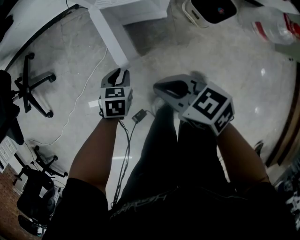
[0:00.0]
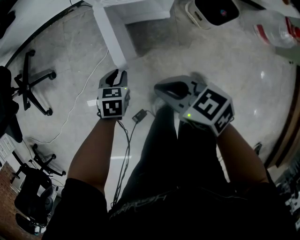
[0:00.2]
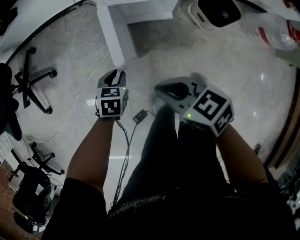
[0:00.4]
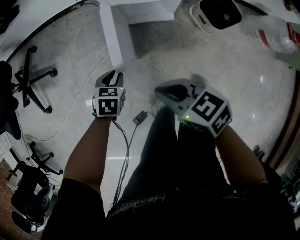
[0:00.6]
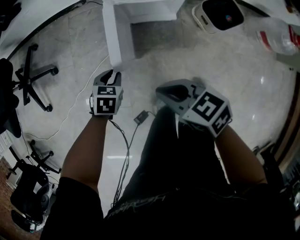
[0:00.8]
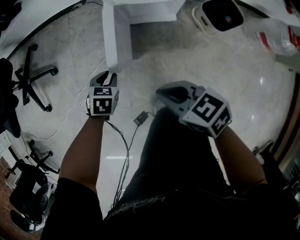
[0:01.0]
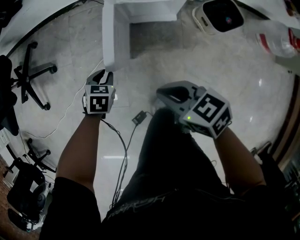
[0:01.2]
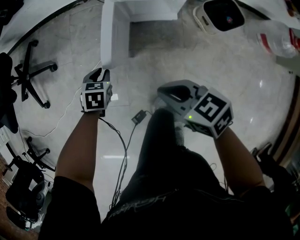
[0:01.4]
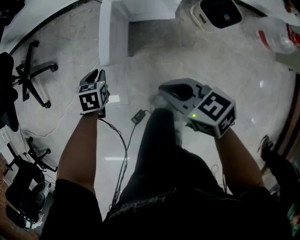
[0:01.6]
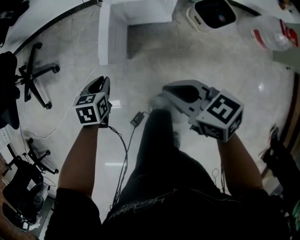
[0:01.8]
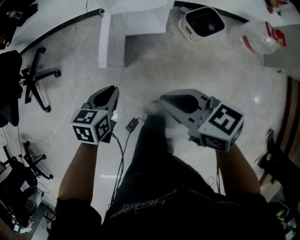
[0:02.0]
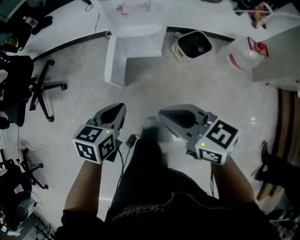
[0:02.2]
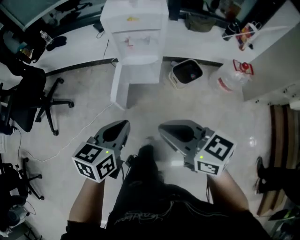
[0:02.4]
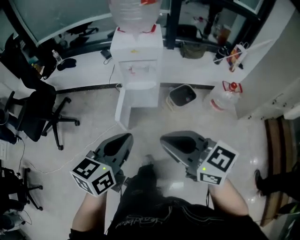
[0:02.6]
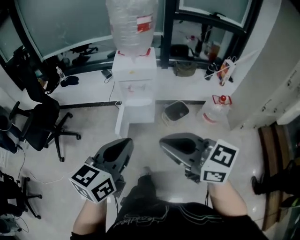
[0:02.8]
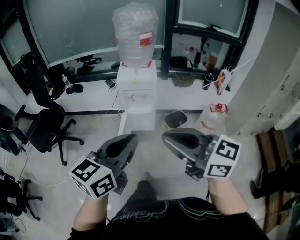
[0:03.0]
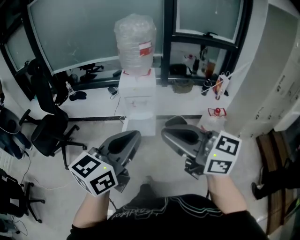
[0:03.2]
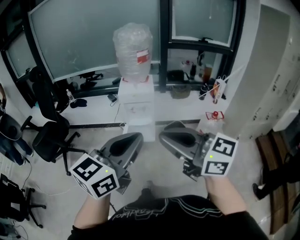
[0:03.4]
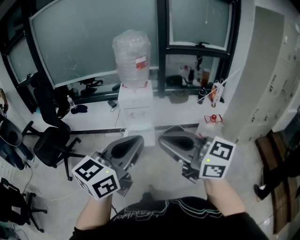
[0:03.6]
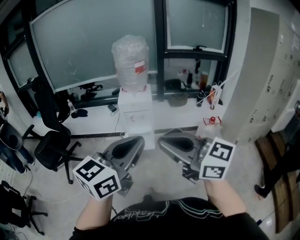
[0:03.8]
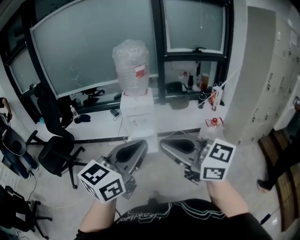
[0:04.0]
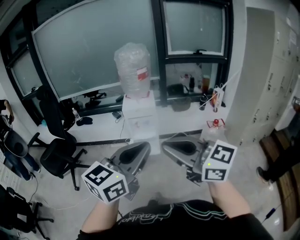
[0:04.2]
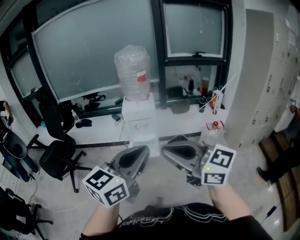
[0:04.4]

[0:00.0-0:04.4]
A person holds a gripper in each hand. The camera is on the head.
0.0 to 1.4 s: The left gripper moves to the left and forward, approximately 10 cm.
1.4 to 3.0 s: Both grippers travel together upward and backward, about 80 cm. The left gripper points its fingers roughly 60 degrees further upward, while the right gripper points its fingers some 40 degrees further upward.
3.0 to 4.4 s: Both grippers move backward and upward, about 15 cm.

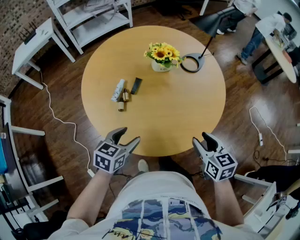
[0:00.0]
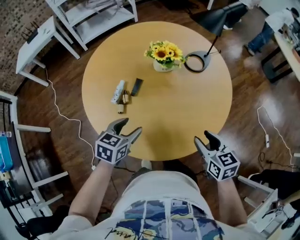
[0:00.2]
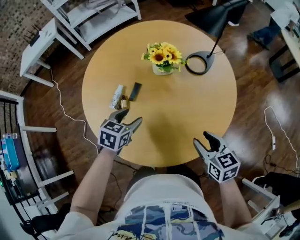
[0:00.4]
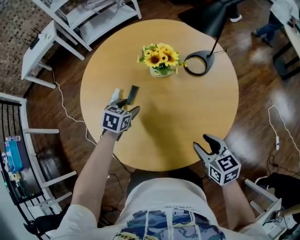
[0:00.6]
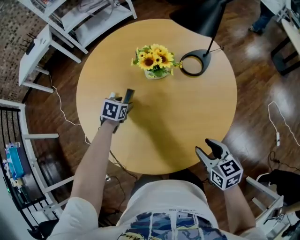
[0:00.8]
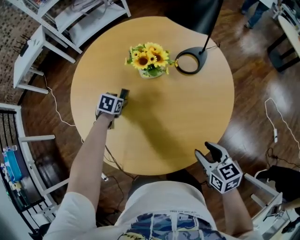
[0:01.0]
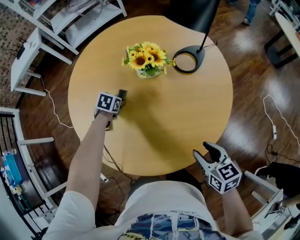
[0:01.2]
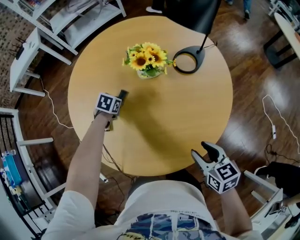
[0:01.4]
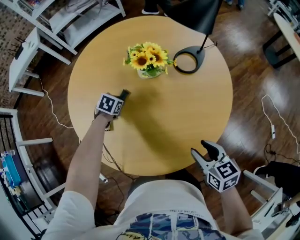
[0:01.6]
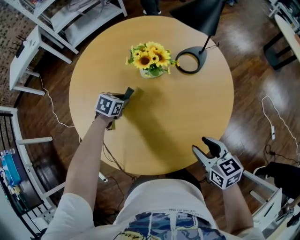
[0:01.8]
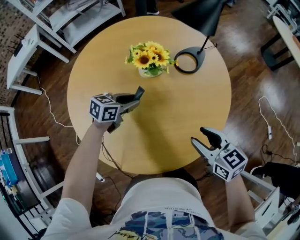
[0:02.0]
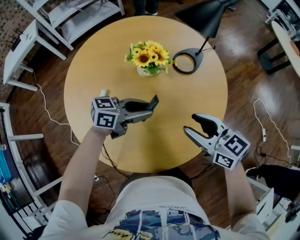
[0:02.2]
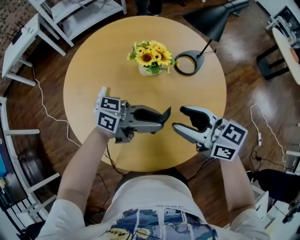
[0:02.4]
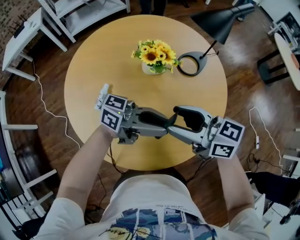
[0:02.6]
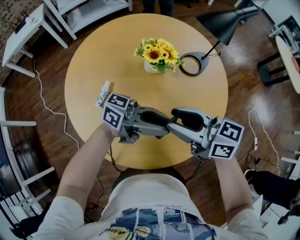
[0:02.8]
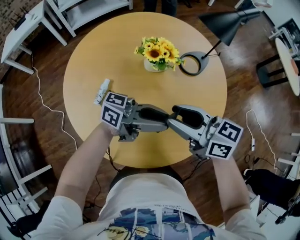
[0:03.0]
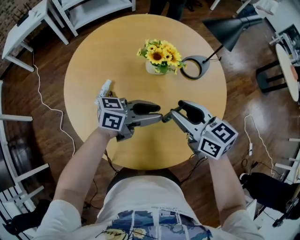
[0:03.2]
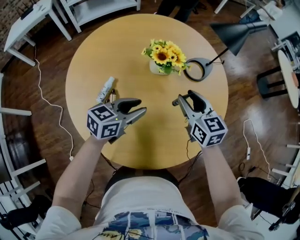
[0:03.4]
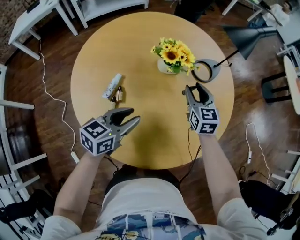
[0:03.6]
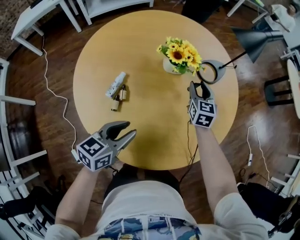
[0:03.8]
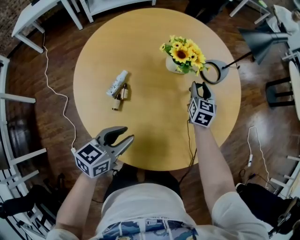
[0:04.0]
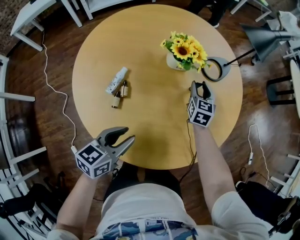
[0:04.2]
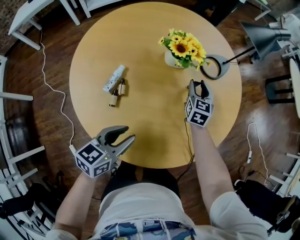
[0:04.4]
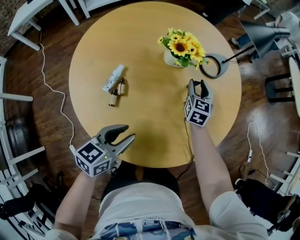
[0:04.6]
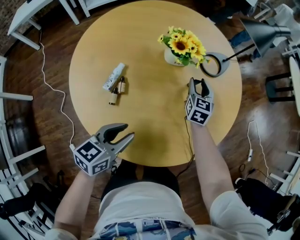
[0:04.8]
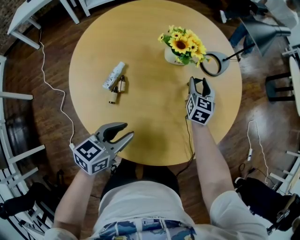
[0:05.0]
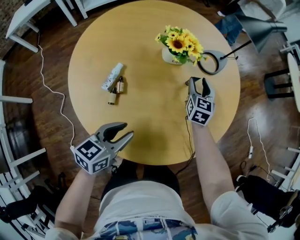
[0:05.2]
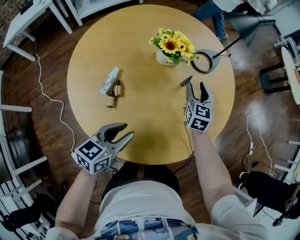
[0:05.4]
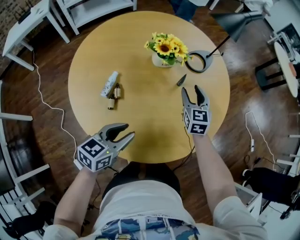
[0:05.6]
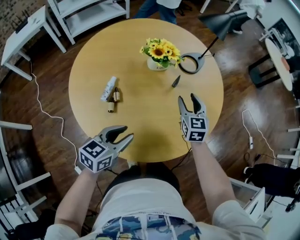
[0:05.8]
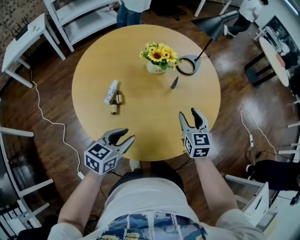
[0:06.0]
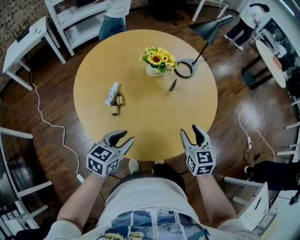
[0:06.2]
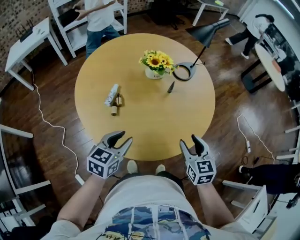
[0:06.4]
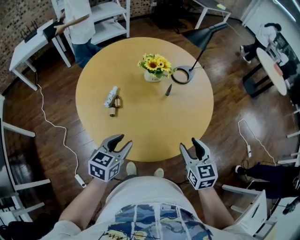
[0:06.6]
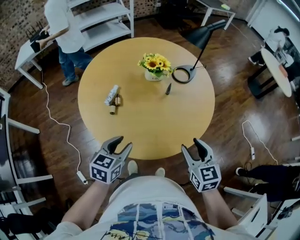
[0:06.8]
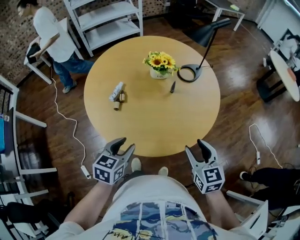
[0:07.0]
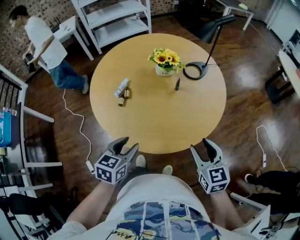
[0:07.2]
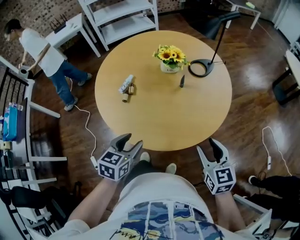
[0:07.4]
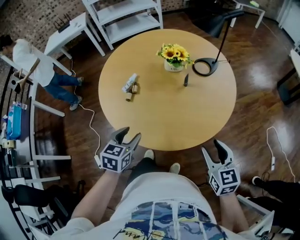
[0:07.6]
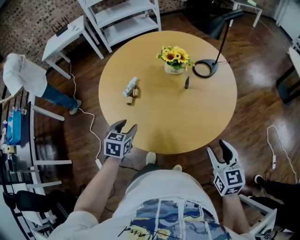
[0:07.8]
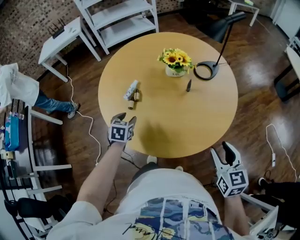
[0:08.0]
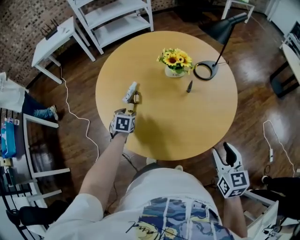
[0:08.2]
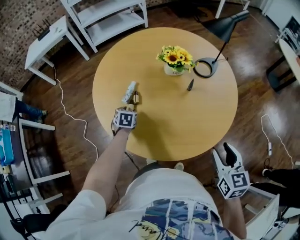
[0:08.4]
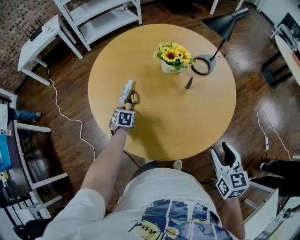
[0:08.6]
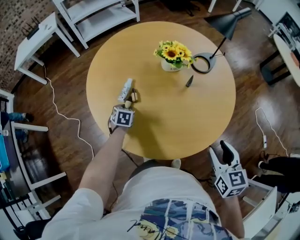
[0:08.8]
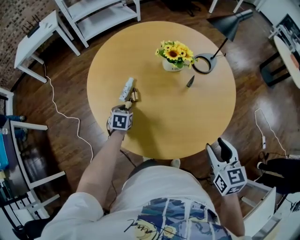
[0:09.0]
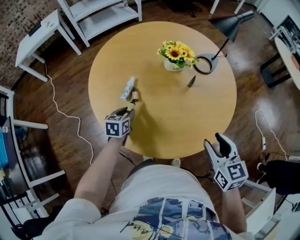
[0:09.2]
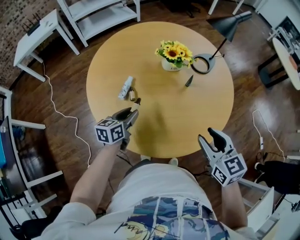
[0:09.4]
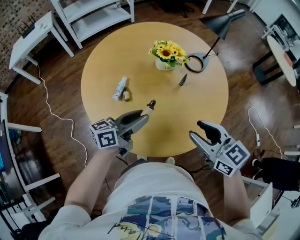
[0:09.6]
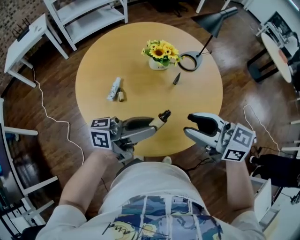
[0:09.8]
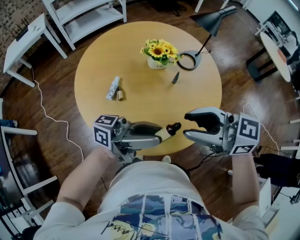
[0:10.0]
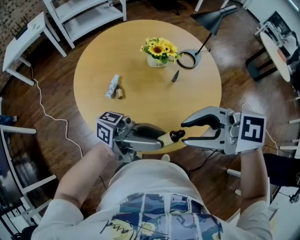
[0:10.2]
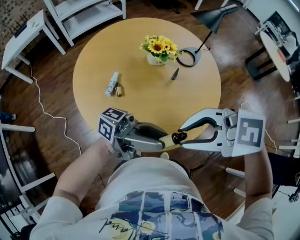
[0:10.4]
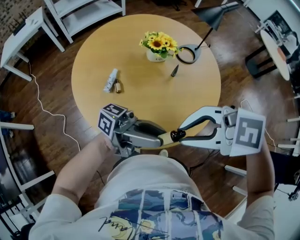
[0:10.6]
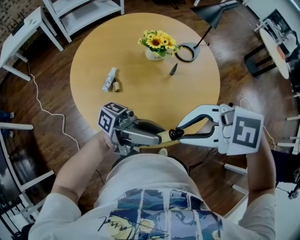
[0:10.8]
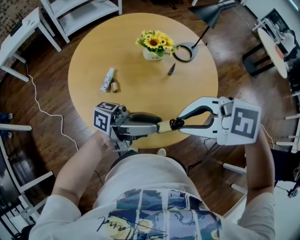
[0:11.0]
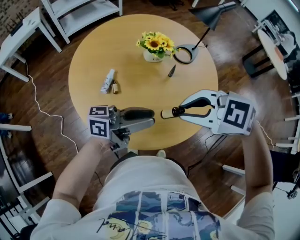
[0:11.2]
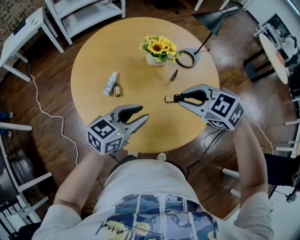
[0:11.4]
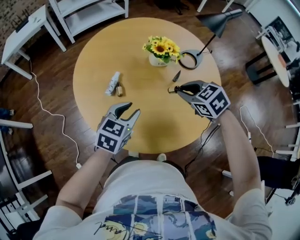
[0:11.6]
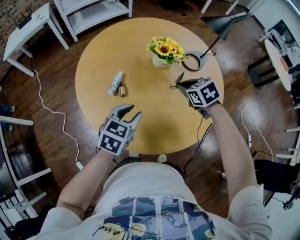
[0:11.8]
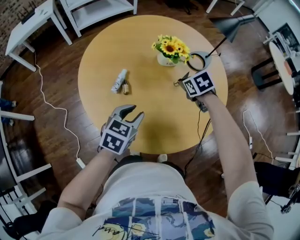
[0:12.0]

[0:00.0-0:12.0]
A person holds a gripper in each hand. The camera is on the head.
0.0 to 1.6 s: The right gripper moves forward, to the right and downward, some 15 cm. Meanwhile the left gripper goes about 35 cm forward and downward, turns by roughly 30 degrees, and closes up.
1.6 to 3.0 s: The left gripper goes some 30 cm upward, and angles its fingers upward, by some 90 degrees, while the right gripper ends up about 25 cm from where it was, and rotates some 40 degrees.
3.0 to 4.4 s: The left gripper shifts by approximately 20 cm, and tips its fingers downward by some 40 degrees. Meanwhile the right gripper heads downward, covering some 20 cm, and turns by approximately 60 degrees.
4.4 to 6.0 s: The left gripper heads backward, covering some 5 cm; the right gripper is displaced backward and upward by about 25 cm.
6.0 to 7.6 s: The left gripper ends up about 10 cm from where it was, and rotates approximately 30 degrees; the right gripper moves about 25 cm.
7.6 to 9.0 s: The right gripper moves to the left and forward, approximately 15 cm, while the left gripper moves forward, downward and to the left, roughly 35 cm.
9.0 to 10.4 s: The left gripper heads upward, covering roughly 35 cm, and tips its fingers upward by about 90 degrees; the right gripper moves about 20 cm, changes its angle by about 70 degrees, and closes its fingers.
10.4 to 12.0 s: The right gripper shifts by about 35 cm, and tilts its fingers approximately 30 degrees downward. Meanwhile the left gripper goes approximately 15 cm downward, and angles its fingers downward, by about 70 degrees.

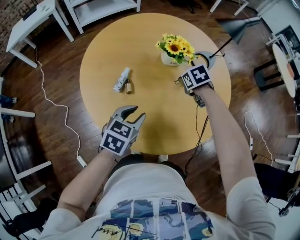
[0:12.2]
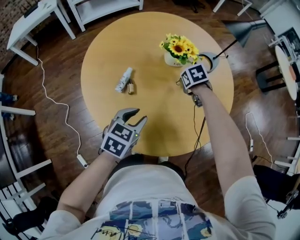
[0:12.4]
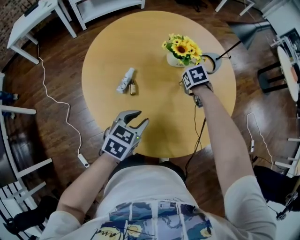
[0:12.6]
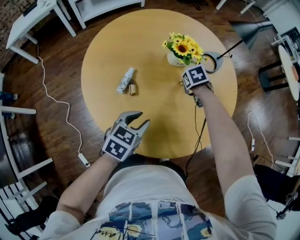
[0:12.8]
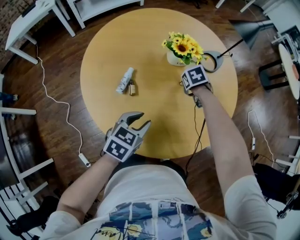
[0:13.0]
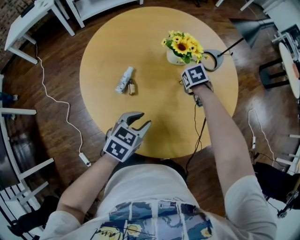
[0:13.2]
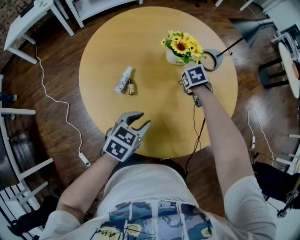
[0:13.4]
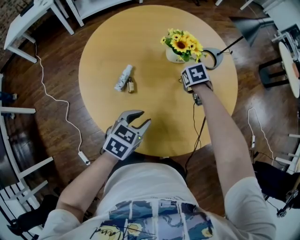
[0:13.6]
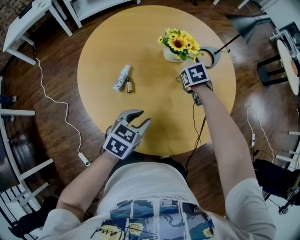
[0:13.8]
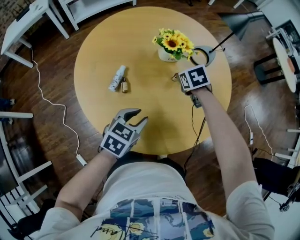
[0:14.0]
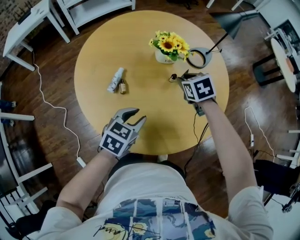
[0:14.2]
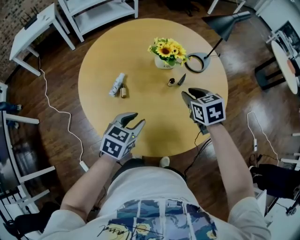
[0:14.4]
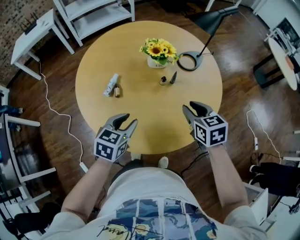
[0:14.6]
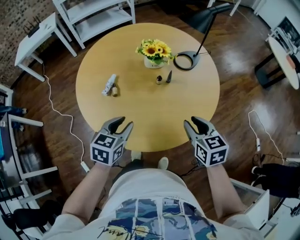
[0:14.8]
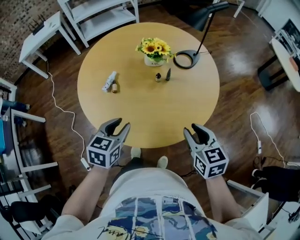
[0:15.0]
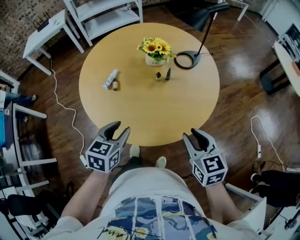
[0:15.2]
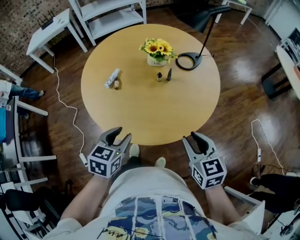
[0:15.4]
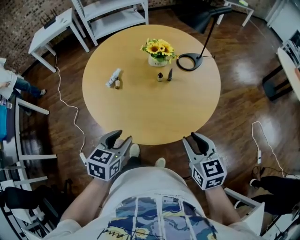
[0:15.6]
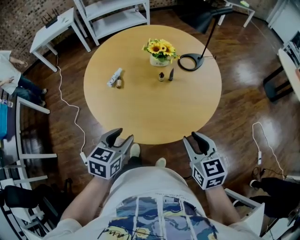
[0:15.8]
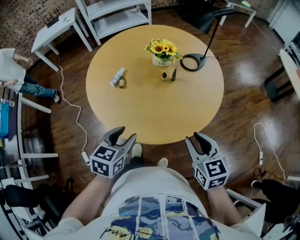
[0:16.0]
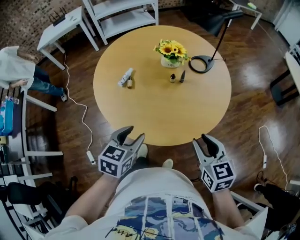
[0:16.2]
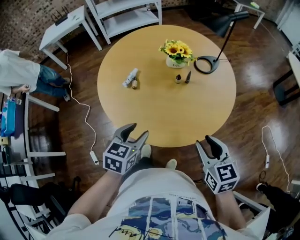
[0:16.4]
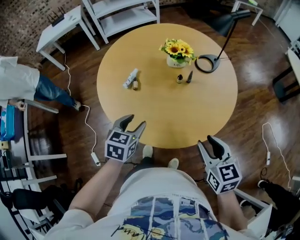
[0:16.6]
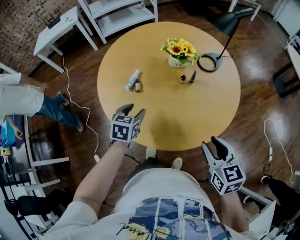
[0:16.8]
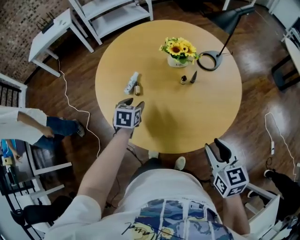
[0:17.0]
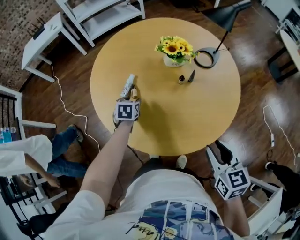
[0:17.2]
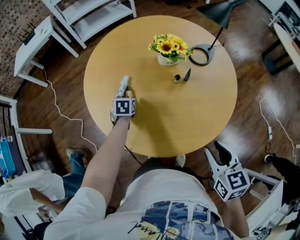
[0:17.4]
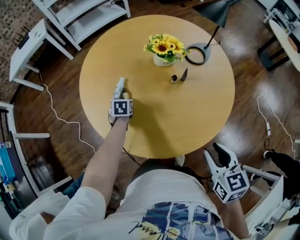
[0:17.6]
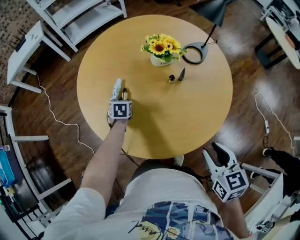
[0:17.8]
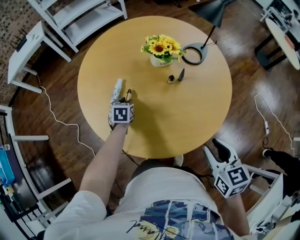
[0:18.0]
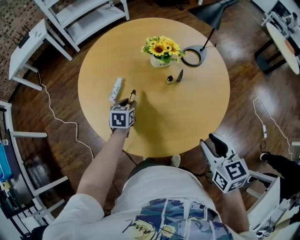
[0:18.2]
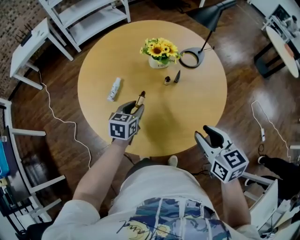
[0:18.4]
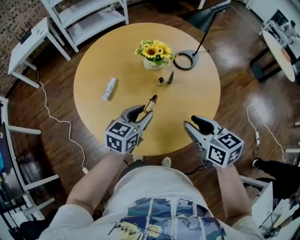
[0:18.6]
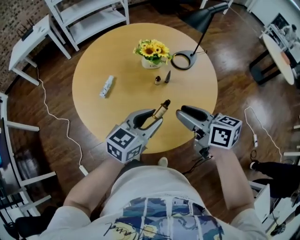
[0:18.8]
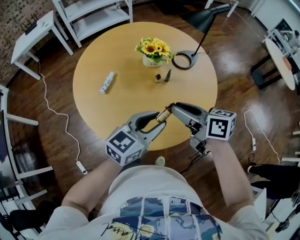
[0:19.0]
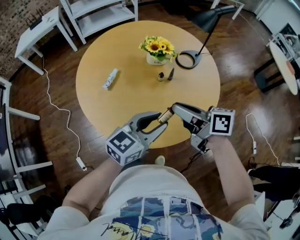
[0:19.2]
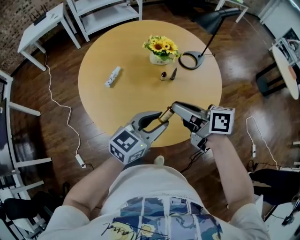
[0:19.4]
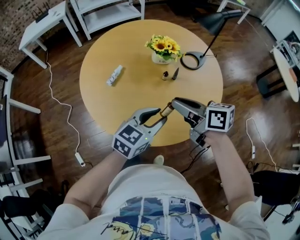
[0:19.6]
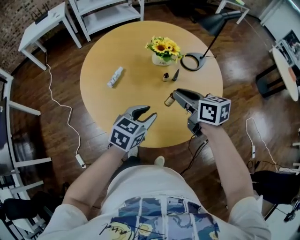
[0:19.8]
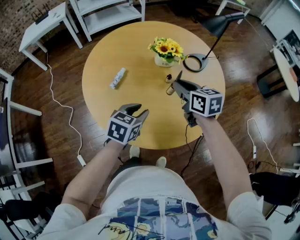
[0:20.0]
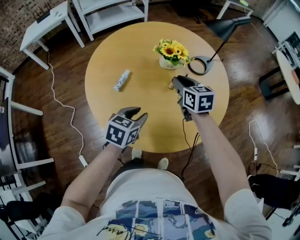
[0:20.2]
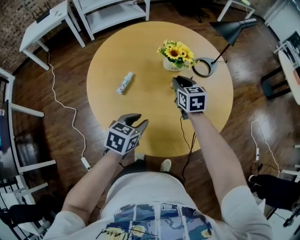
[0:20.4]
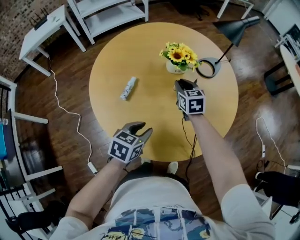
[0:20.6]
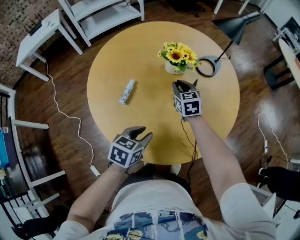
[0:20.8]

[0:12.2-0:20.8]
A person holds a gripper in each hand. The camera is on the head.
12.2 to 13.6 s: The right gripper is displaced downward by roughly 5 cm.
13.6 to 15.0 s: The left gripper is displaced backward, upward and to the right by about 15 cm, and changes its angle by about 20 degrees. The right gripper goes roughly 40 cm backward, upward and to the right, and angles its fingers upward, by roughly 40 degrees.
15.0 to 16.6 s: The left gripper moves approximately 10 cm backward and comes back.
16.6 to 18.0 s: The right gripper ends up some 5 cm from where it was, while the left gripper travels forward and downward by roughly 30 cm.
18.0 to 19.4 s: The left gripper heads upward, to the right and backward, covering about 40 cm, and angles its fingers upward, by approximately 40 degrees. The right gripper shifts roughly 10 cm forward and to the left, rotates roughly 50 degrees, and closes.
19.4 to 20.8 s: The left gripper moves to the left and downward, roughly 20 cm, and points its fingers some 30 degrees further downward. The right gripper moves forward and downward, approximately 30 cm, and rotates approximately 60 degrees.
